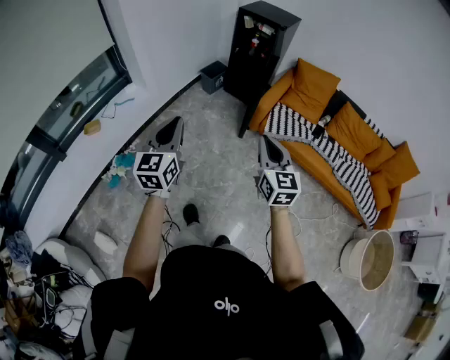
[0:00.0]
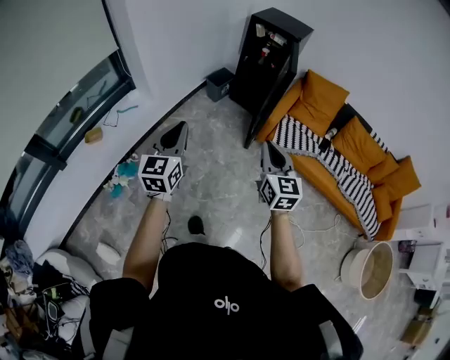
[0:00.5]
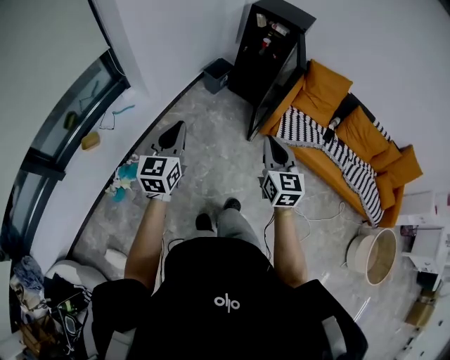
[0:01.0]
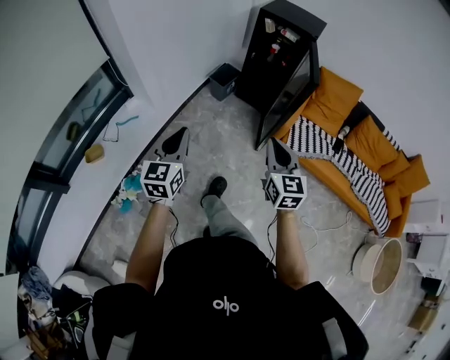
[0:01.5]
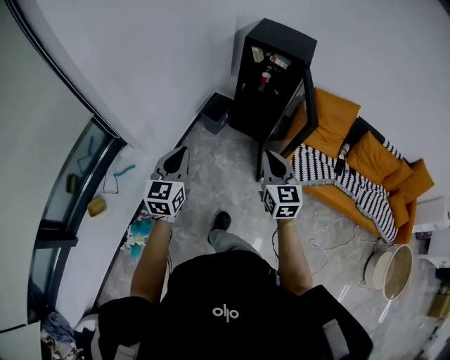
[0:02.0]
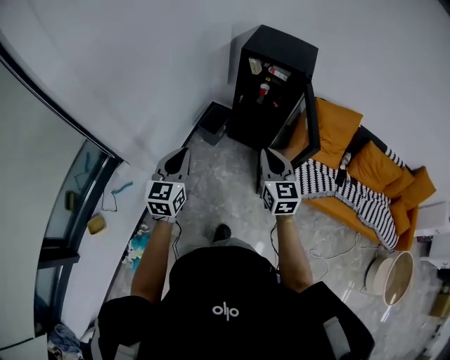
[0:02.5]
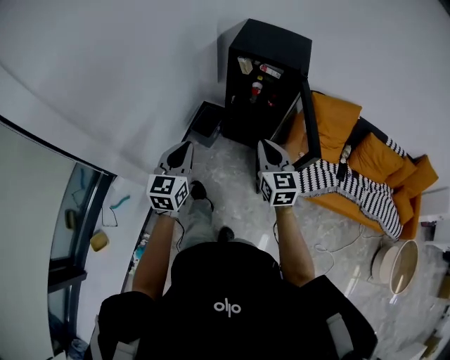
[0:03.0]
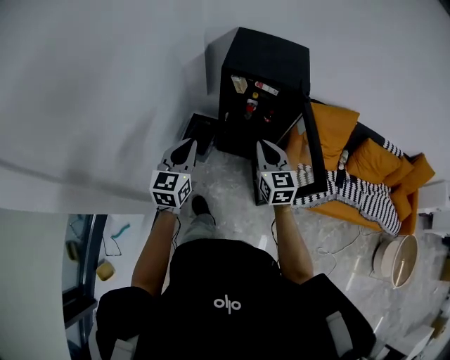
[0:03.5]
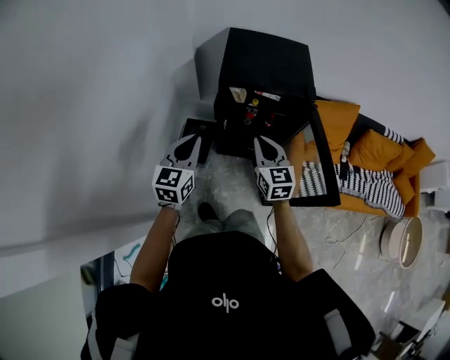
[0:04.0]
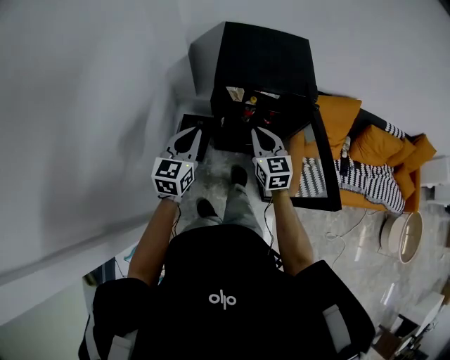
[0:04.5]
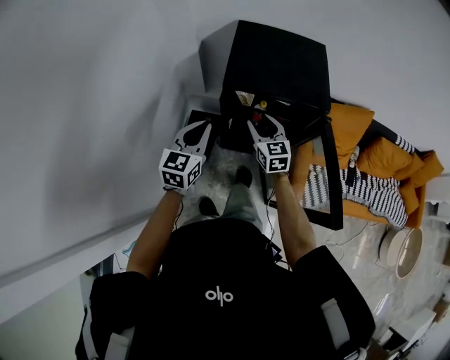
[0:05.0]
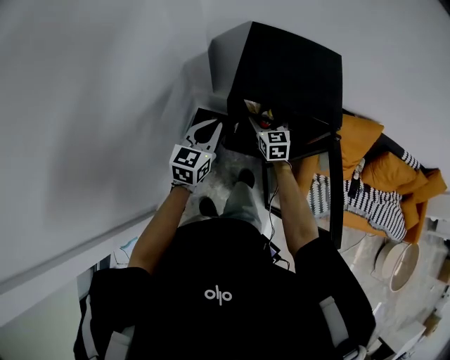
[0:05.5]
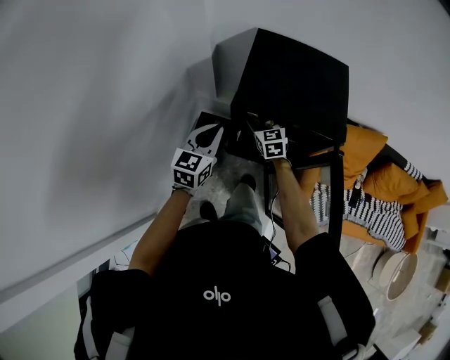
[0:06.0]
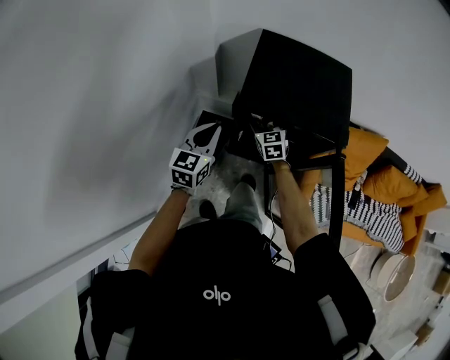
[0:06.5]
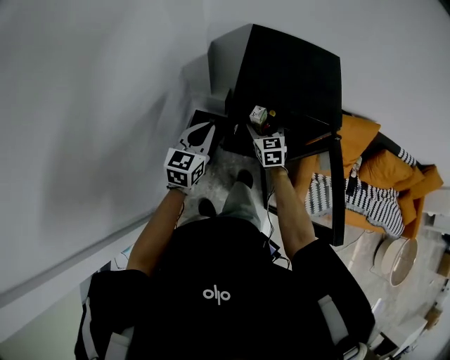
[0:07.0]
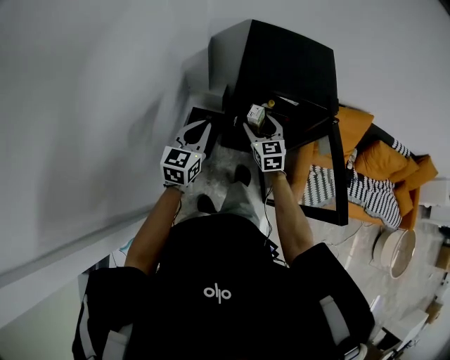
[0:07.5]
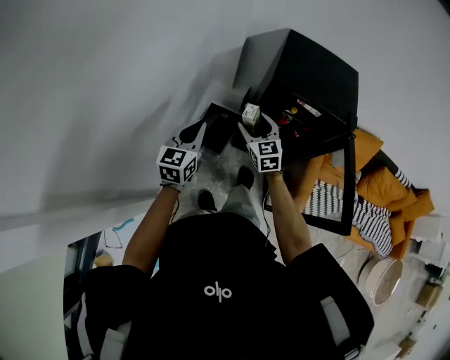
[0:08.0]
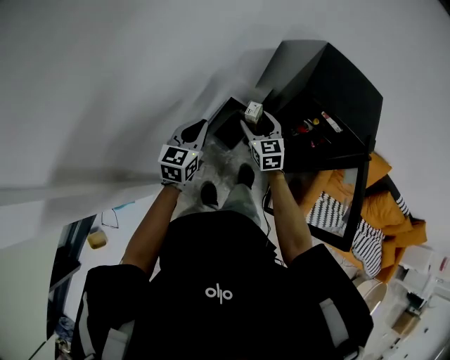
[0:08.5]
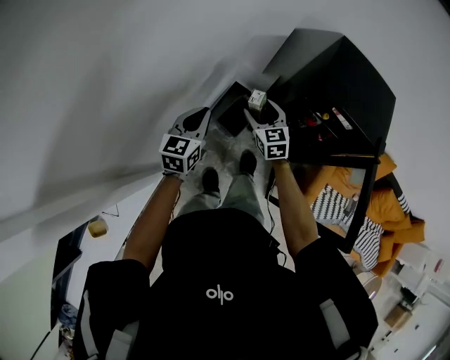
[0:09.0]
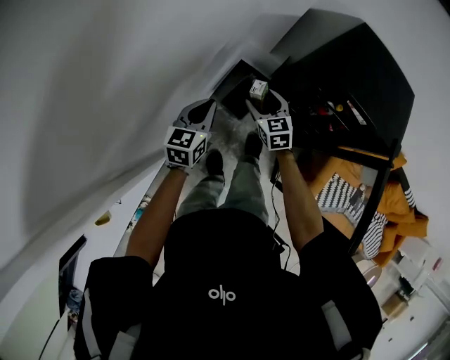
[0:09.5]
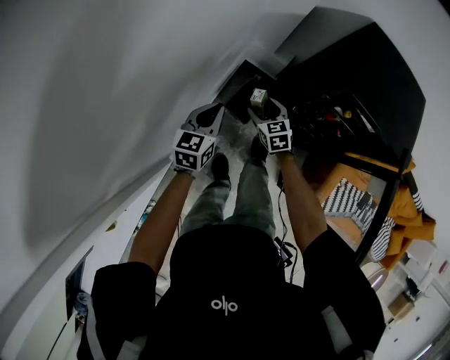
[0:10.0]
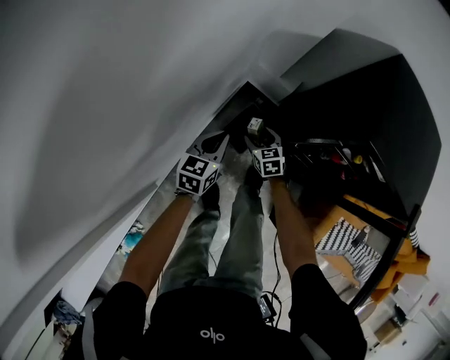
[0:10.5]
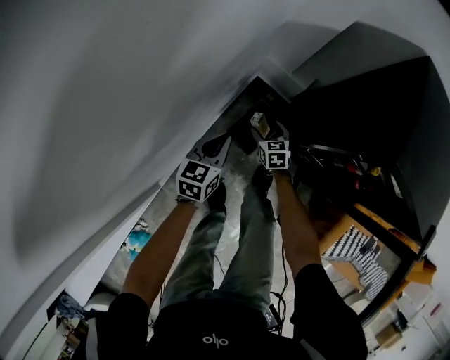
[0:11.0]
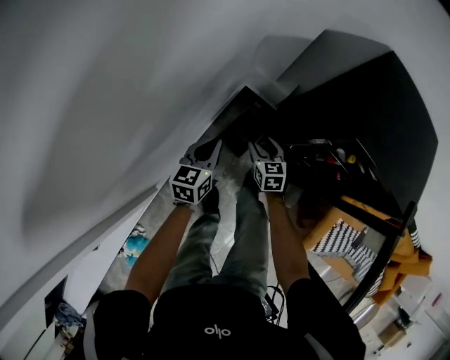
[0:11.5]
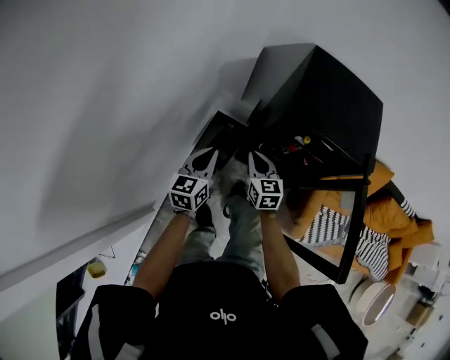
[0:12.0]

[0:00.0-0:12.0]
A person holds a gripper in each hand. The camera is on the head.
0:00.0 to 0:02.0: The two grippers travel together, forward, approximately 50 cm.
0:02.0 to 0:04.0: The pair of grippers is taken forward, roughly 50 cm. The left gripper turns by roughly 20 degrees.
0:04.0 to 0:06.0: The right gripper shifts some 30 cm forward and downward, and opens. The left gripper is displaced forward and downward by some 20 cm.
0:06.0 to 0:08.0: The left gripper travels to the left and backward by approximately 20 cm, while the right gripper heads backward and to the left, covering roughly 20 cm.
0:08.0 to 0:10.0: The right gripper travels downward and to the left by approximately 20 cm, and rotates some 20 degrees; the left gripper travels downward, forward and to the left by roughly 15 cm.
0:10.0 to 0:12.0: Both grippers travel together to the right, roughly 10 cm. The left gripper travels downward and back again, some 20 cm each way. Meanwhile the right gripper moves some 25 cm downward and comes back, changes its angle by approximately 20 degrees, and closes.

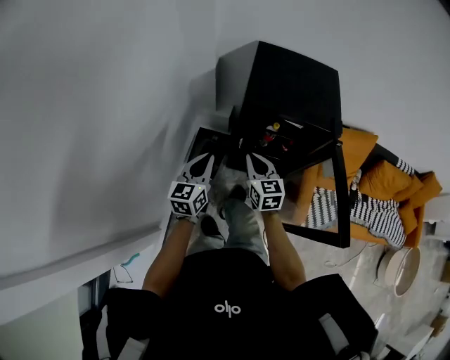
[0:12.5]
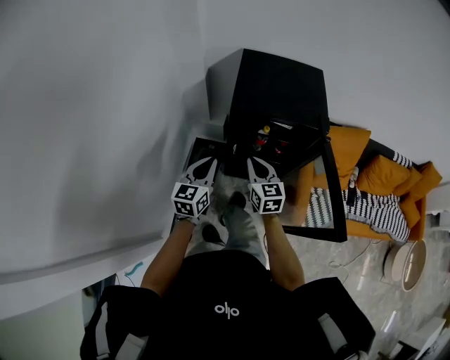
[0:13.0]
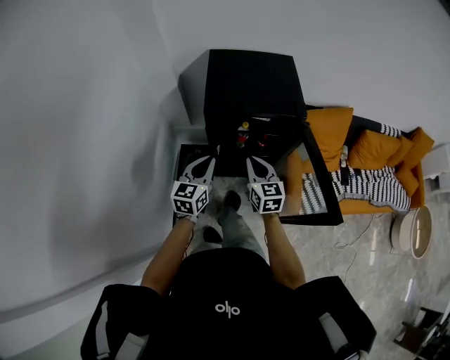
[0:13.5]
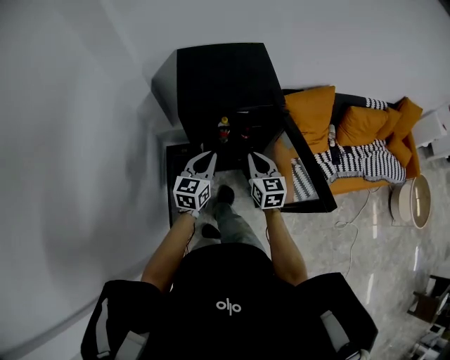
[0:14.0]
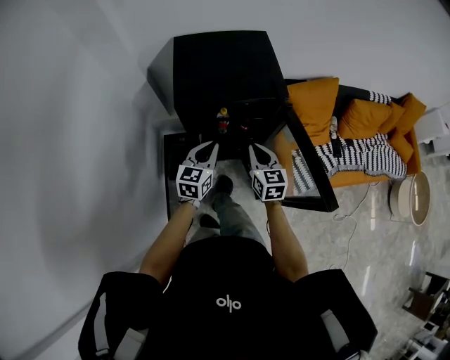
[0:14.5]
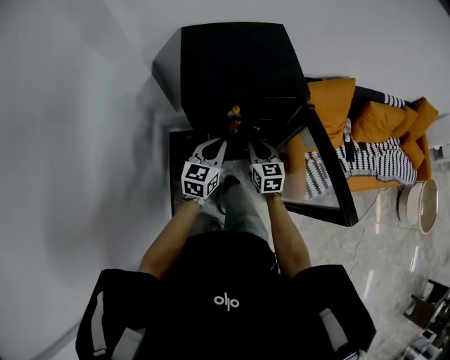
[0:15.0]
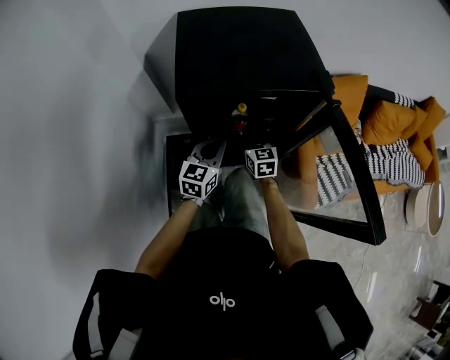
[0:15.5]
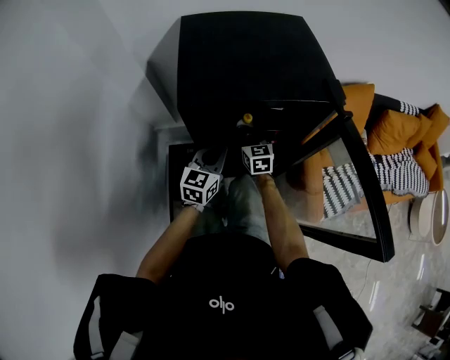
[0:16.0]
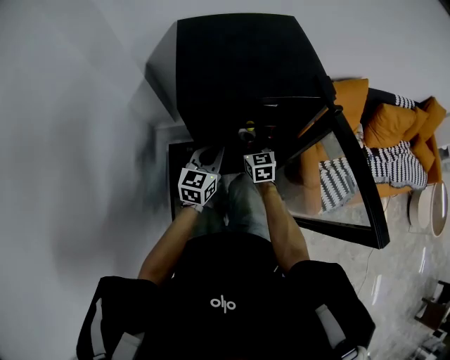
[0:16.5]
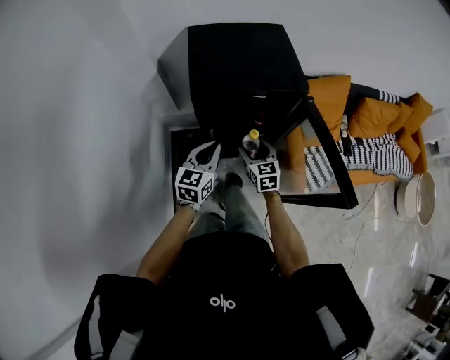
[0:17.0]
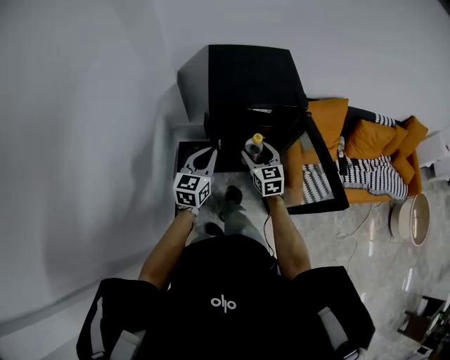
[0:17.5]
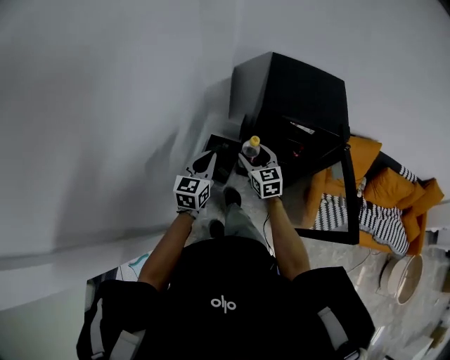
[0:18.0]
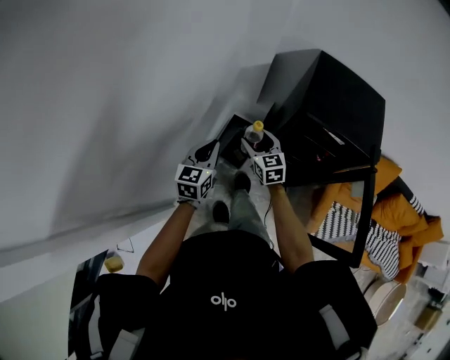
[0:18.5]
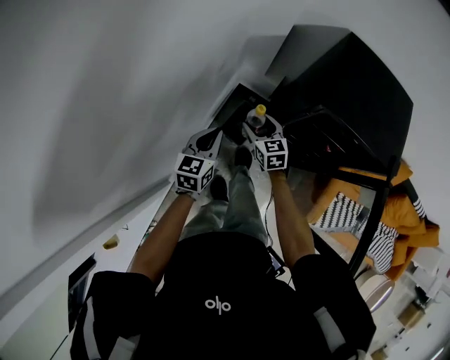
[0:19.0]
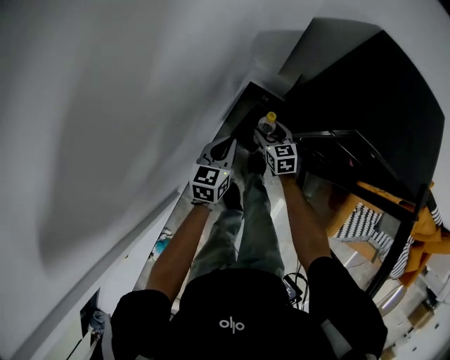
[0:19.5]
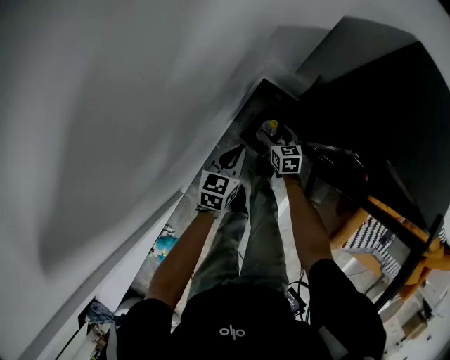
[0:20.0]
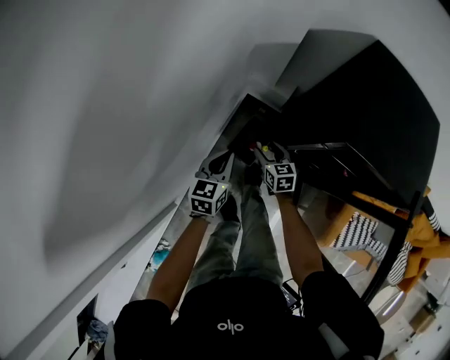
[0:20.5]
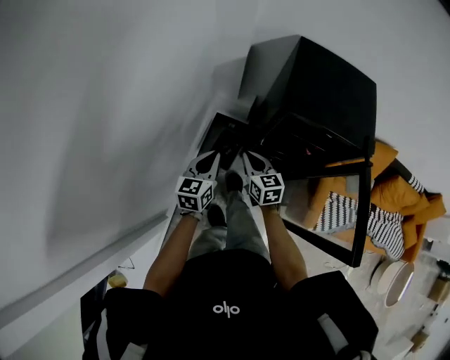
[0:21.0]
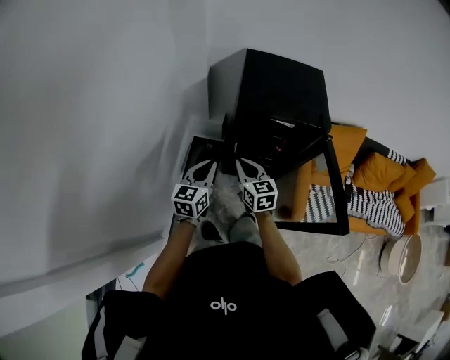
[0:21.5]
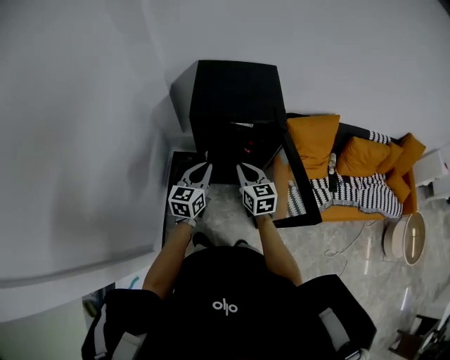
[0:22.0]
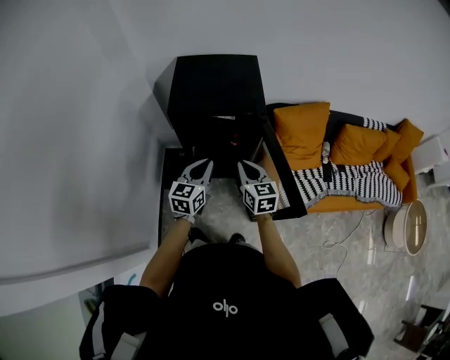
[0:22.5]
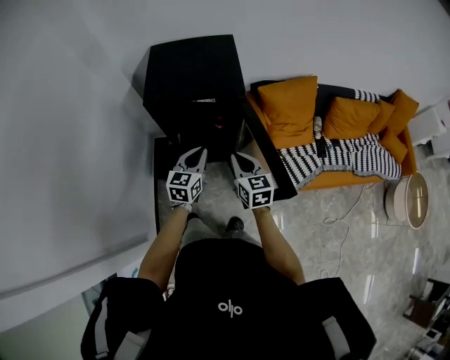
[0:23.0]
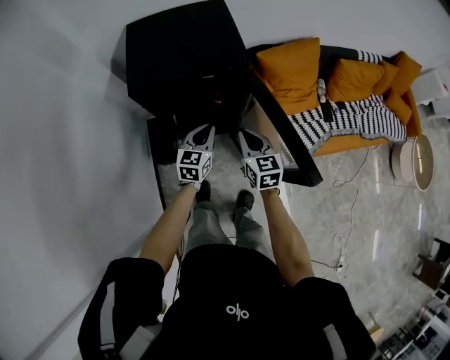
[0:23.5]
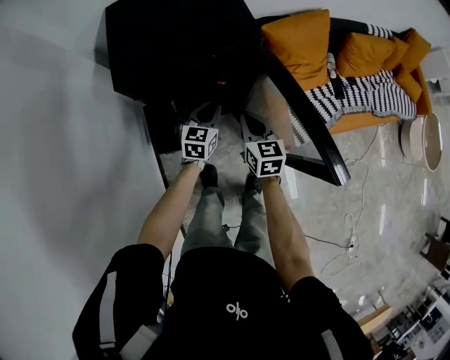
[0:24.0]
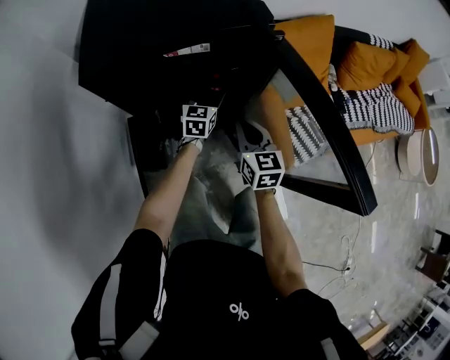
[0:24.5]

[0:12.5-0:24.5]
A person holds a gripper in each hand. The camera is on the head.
0:12.5 to 0:14.5: The right gripper goes about 20 cm to the right, and rotates some 20 degrees. Meanwhile the left gripper goes about 20 cm to the right and forward, and changes its angle by about 30 degrees.
0:14.5 to 0:16.5: The left gripper moves downward and forward, approximately 15 cm. The right gripper moves downward, forward and to the left, about 30 cm, and opens its fingers.
0:16.5 to 0:18.5: The right gripper changes place by approximately 40 cm, and rotates some 40 degrees. The left gripper changes place by about 40 cm, and swivels roughly 40 degrees.
0:18.5 to 0:20.5: The right gripper travels downward by approximately 25 cm. Meanwhile the left gripper travels downward and forward by roughly 20 cm.
0:20.5 to 0:22.5: The left gripper changes place by about 40 cm, and rotates roughly 30 degrees. Meanwhile the right gripper moves about 50 cm, changes its angle by roughly 30 degrees, and closes.
0:22.5 to 0:24.5: The left gripper shifts roughly 40 cm downward and forward, and opens up. Meanwhile the right gripper shifts about 25 cm downward.

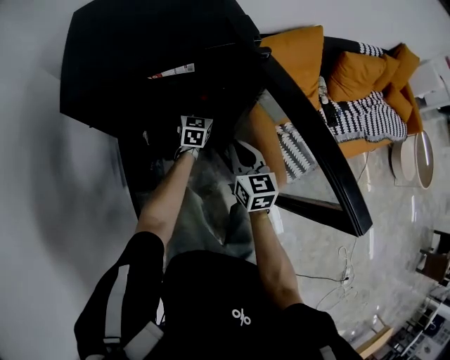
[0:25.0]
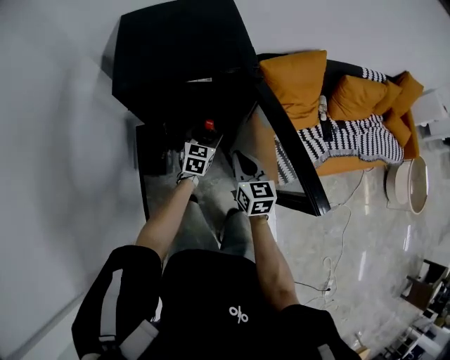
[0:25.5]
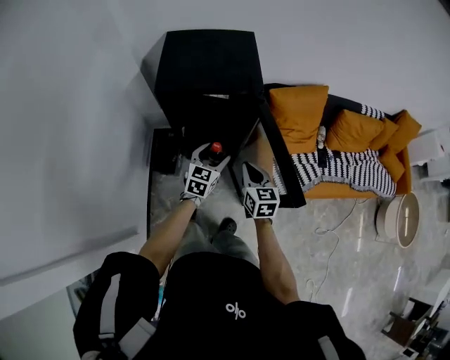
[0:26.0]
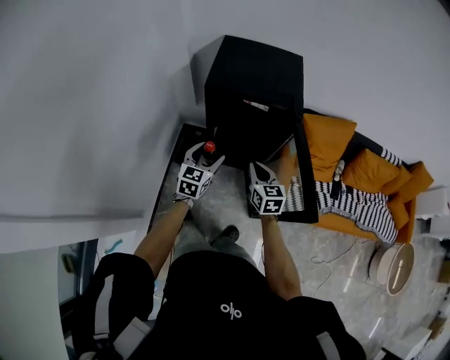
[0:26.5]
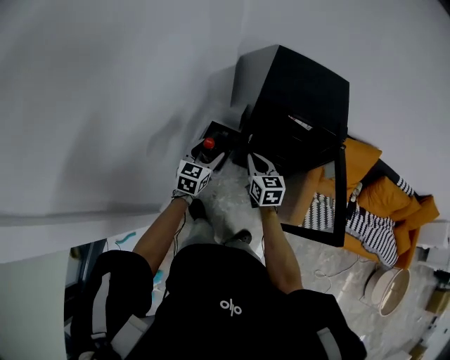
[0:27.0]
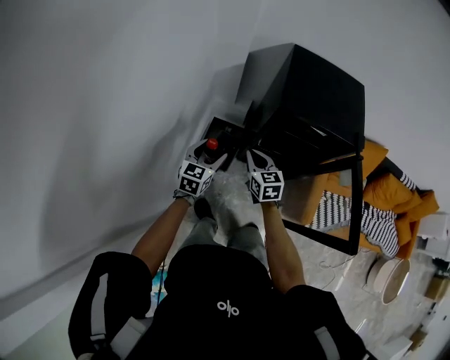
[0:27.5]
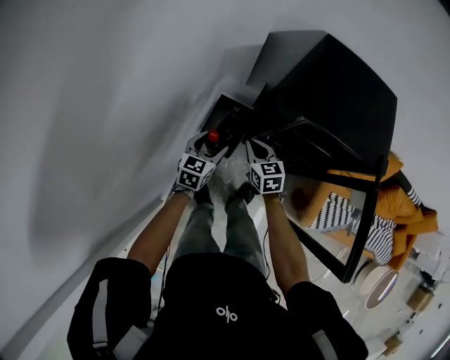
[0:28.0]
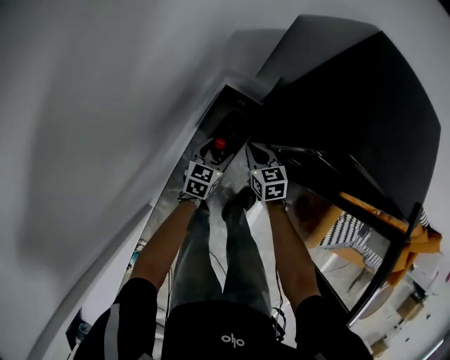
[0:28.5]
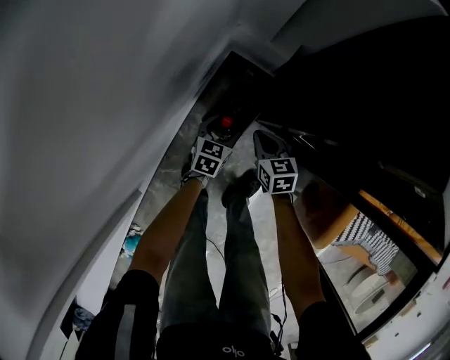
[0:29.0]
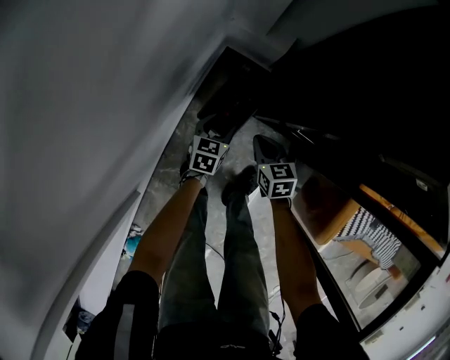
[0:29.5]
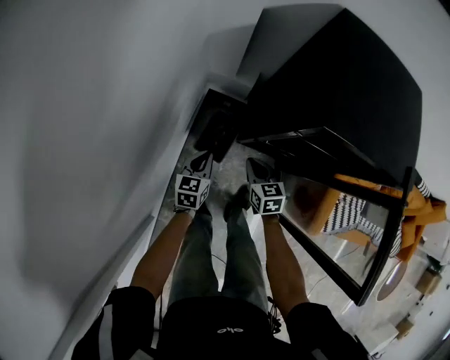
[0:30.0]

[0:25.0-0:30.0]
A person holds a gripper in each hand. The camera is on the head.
0:25.0 to 0:27.5: The left gripper ends up roughly 60 cm from where it was, and changes its angle by roughly 20 degrees. Meanwhile the right gripper shifts by some 40 cm, and swivels roughly 40 degrees.
0:27.5 to 0:30.0: Both grippers travel together downward, approximately 25 cm. The left gripper closes its fingers.
